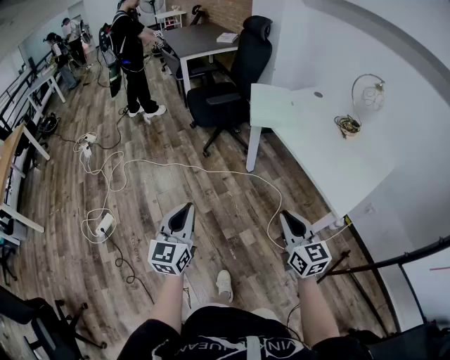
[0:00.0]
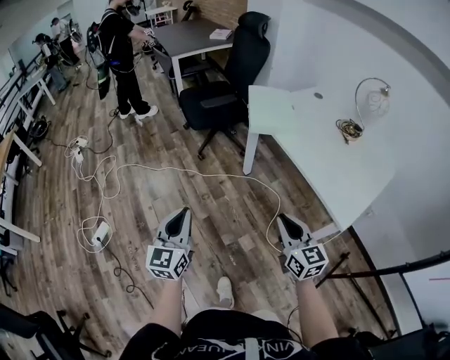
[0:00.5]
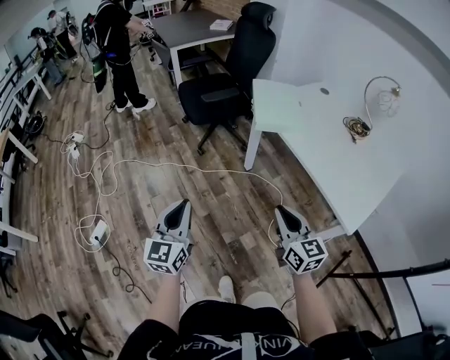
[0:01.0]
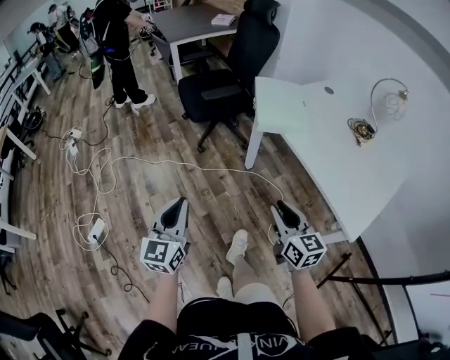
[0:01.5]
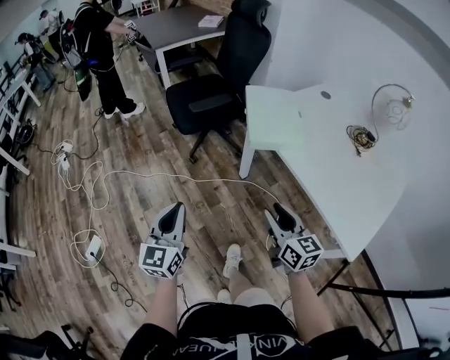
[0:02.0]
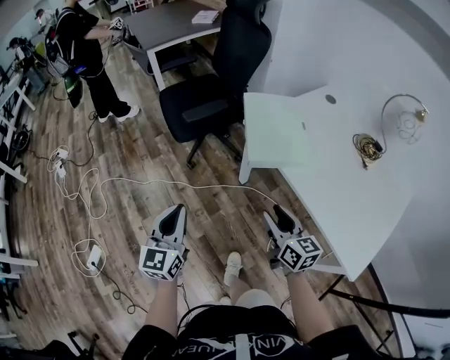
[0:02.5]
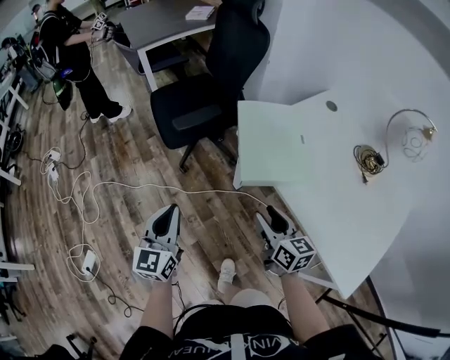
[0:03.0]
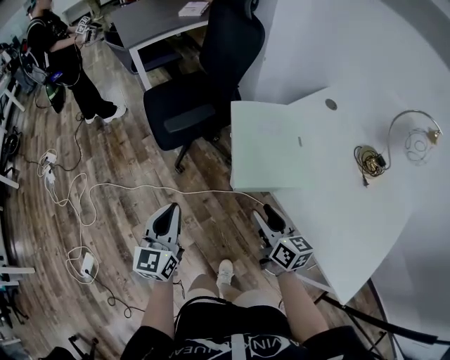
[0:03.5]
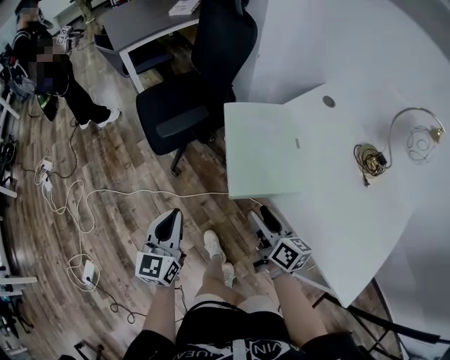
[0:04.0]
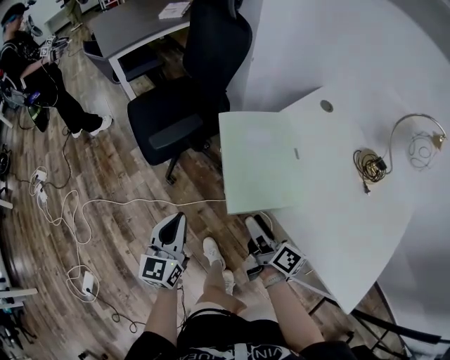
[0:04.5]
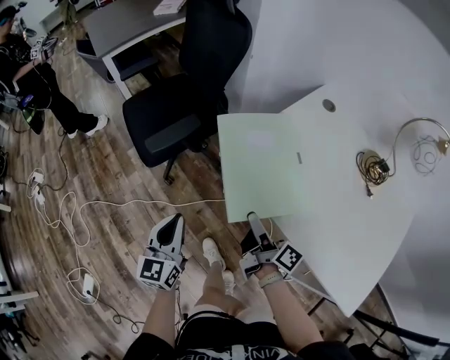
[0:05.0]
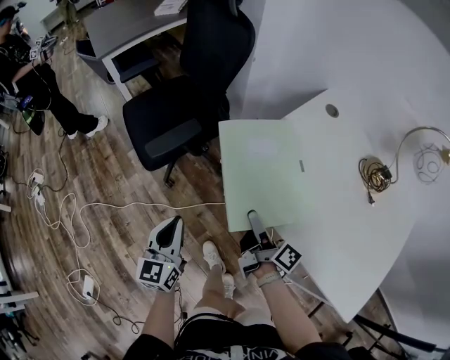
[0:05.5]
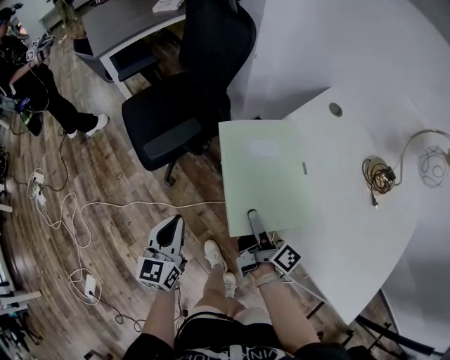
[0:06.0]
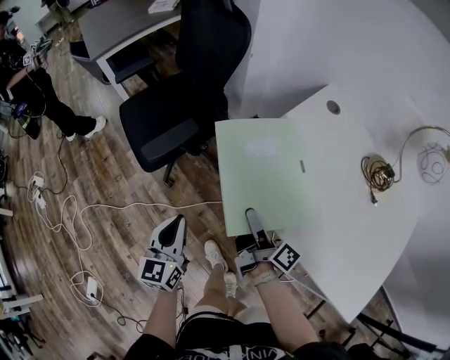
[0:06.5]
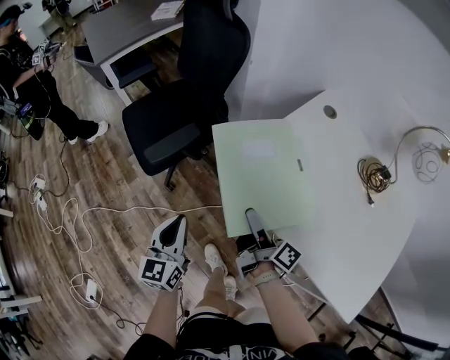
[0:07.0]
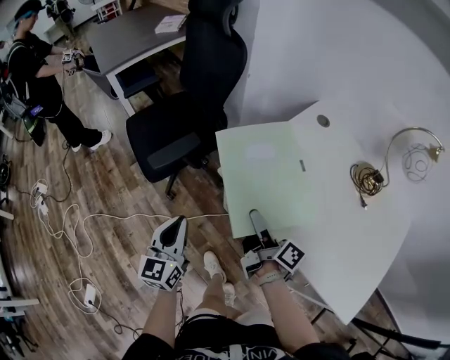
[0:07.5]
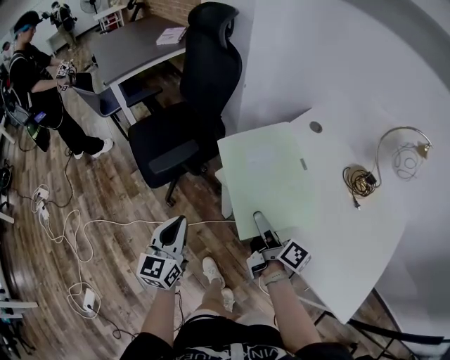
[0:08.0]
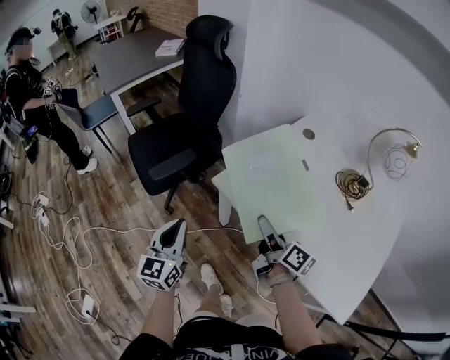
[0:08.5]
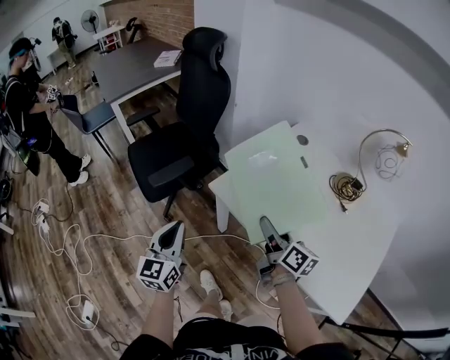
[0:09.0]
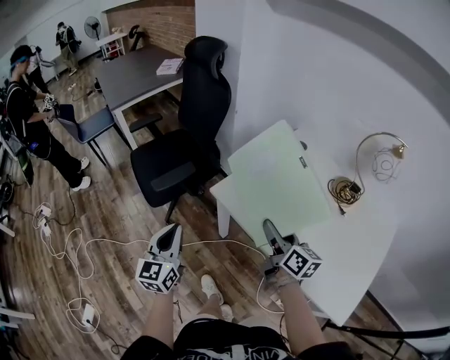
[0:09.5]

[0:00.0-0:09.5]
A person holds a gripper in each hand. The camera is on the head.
0:00.0 to 0:02.0: Both grippers move forward, approximately 25 cm. The right gripper opens its fingers.
0:02.0 to 0:04.0: The two grippers go about 25 cm forward. The right gripper swivels some 30 degrees.
0:04.0 to 0:05.5: The two grippers go some 10 cm forward. The right gripper changes its angle by approximately 30 degrees.
0:05.5 to 0:07.5: There are only small adjustments of the grippers.
0:07.5 to 0:09.5: The right gripper shifts some 15 cm upward and to the right, and changes its angle by approximately 30 degrees. The left gripper moves upward, approximately 5 cm.

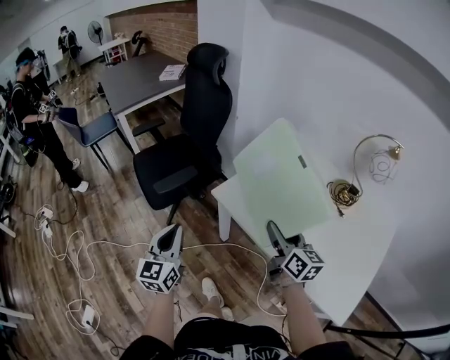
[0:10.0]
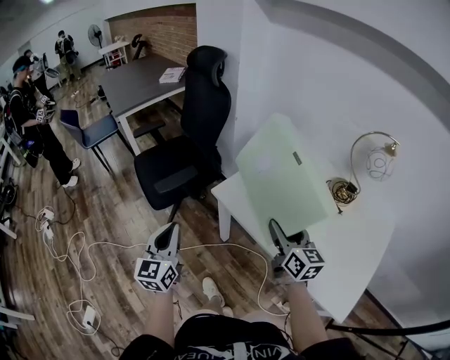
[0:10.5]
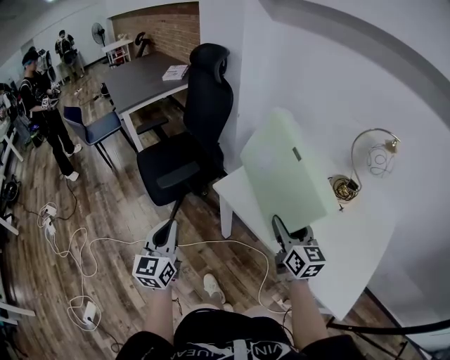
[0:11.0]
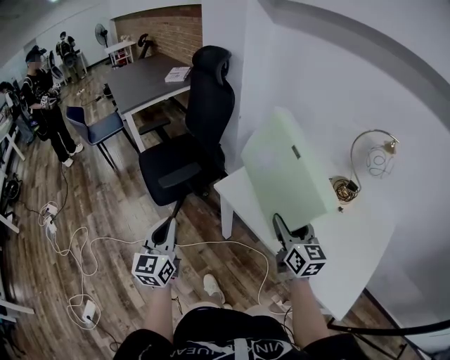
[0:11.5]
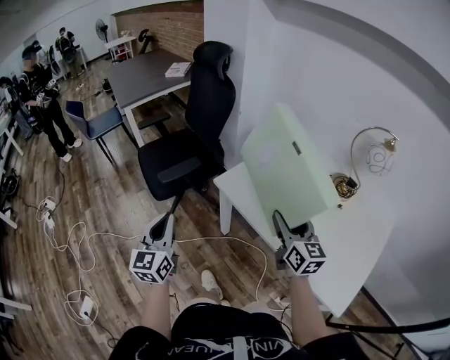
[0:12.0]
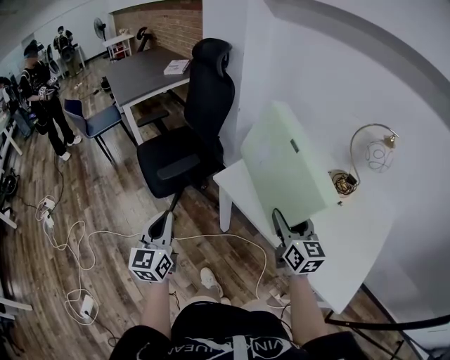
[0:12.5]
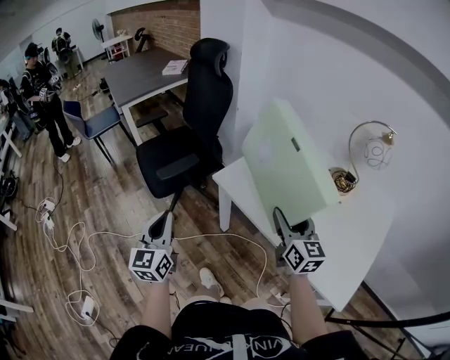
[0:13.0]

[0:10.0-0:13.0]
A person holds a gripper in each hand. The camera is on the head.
0:10.0 to 0:13.0: There are only small adjustments of the grippers.

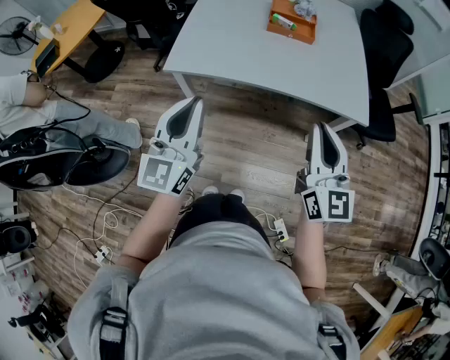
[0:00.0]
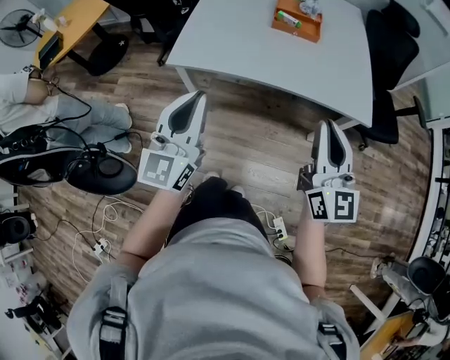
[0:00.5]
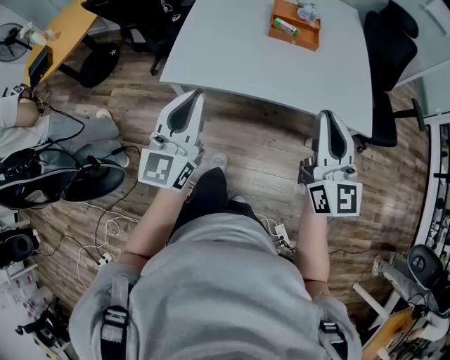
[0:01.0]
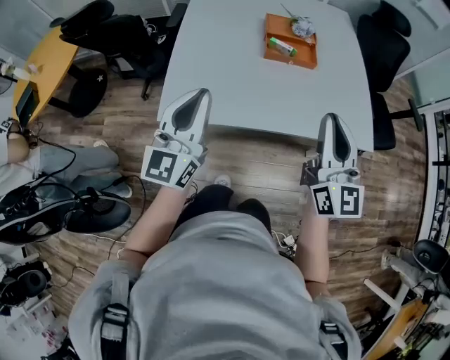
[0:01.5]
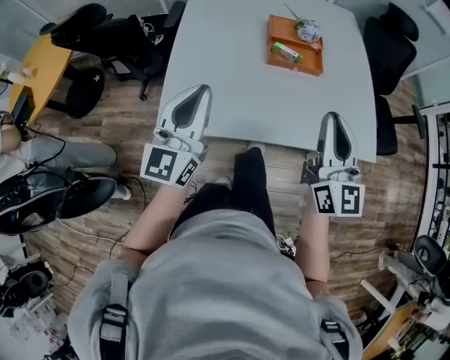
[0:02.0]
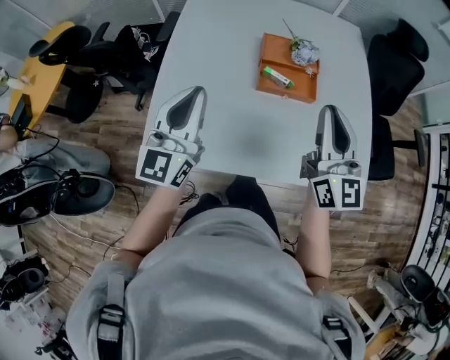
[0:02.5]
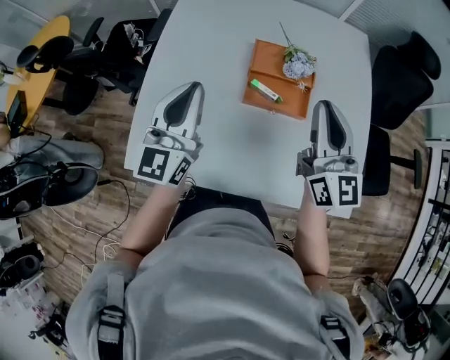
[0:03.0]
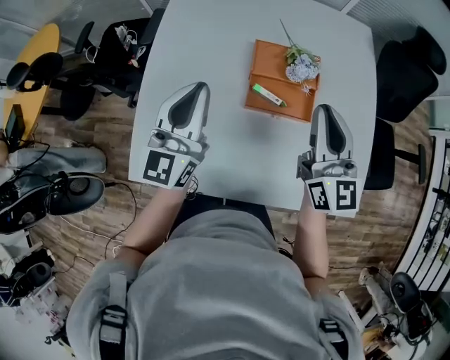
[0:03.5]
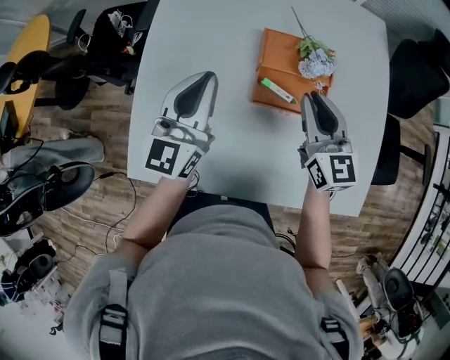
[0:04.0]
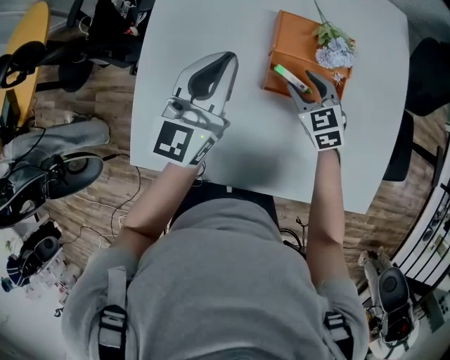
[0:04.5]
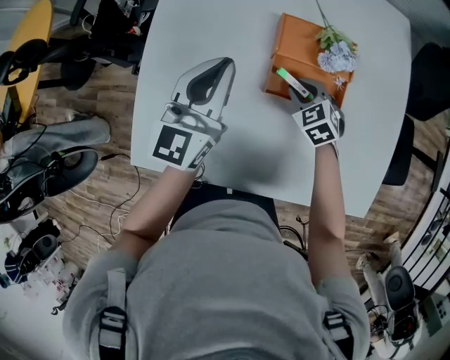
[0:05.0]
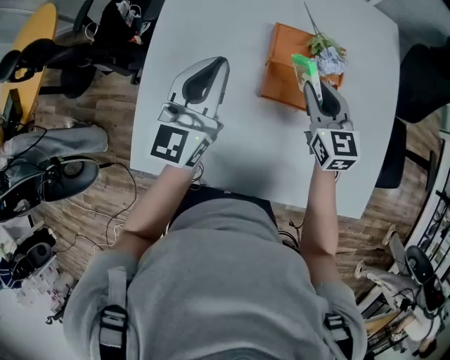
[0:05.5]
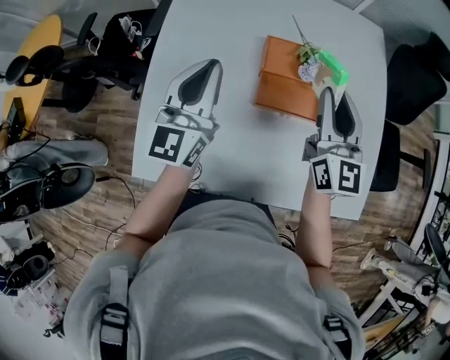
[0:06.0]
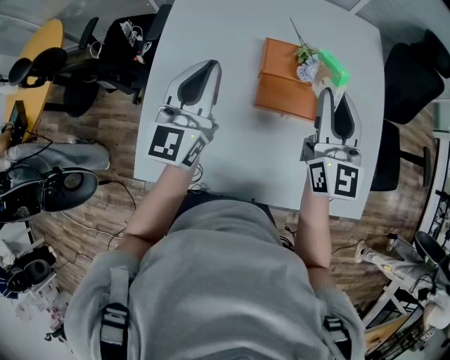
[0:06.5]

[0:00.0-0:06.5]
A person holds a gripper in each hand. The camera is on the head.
0:00.0 to 0:02.0: The grippers both shift forward by some 35 cm.
0:02.0 to 0:04.5: The pair of grippers is taken forward, about 40 cm. The right gripper travels downward by roughly 30 cm, tips its fingers downward by roughly 50 degrees, and opens.
0:04.5 to 0:06.5: The left gripper is displaced upward by about 10 cm, while the right gripper heads upward, covering approximately 25 cm, angles its fingers upward, by about 50 degrees, and closes its fingers.

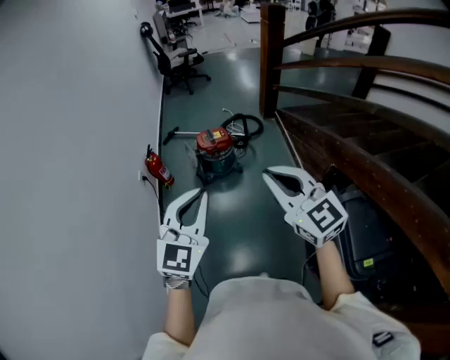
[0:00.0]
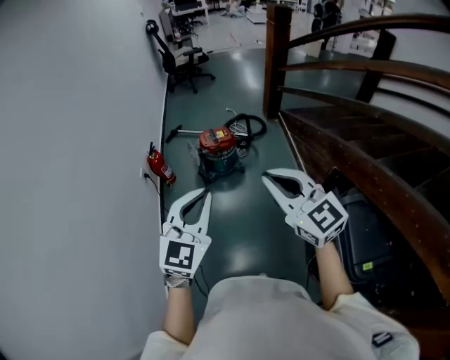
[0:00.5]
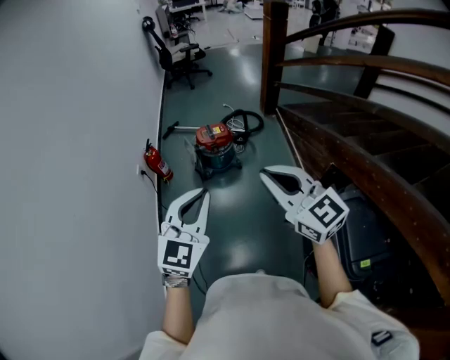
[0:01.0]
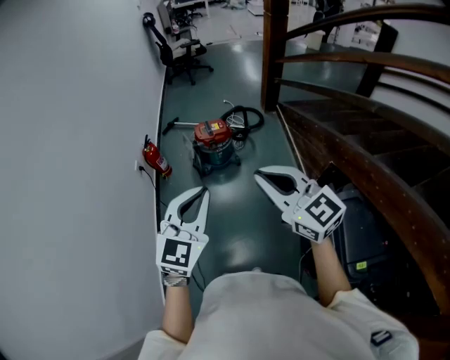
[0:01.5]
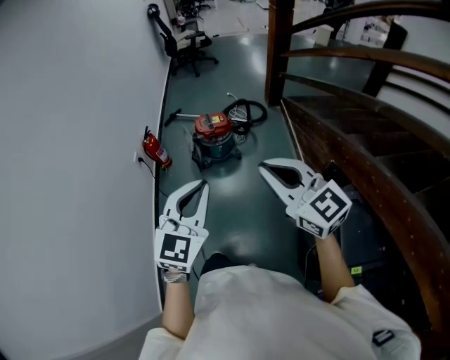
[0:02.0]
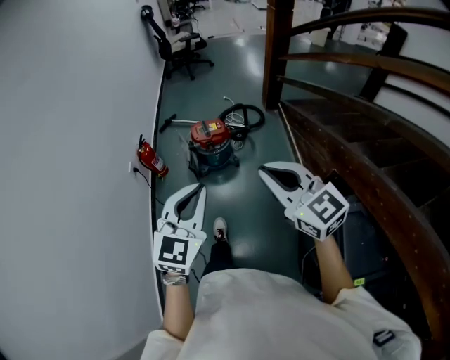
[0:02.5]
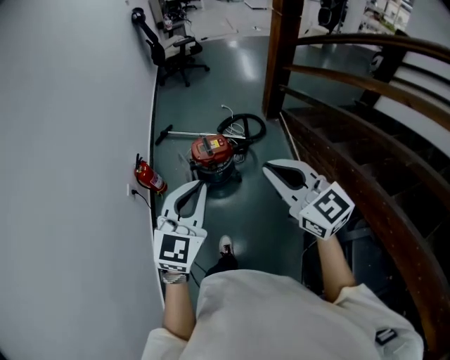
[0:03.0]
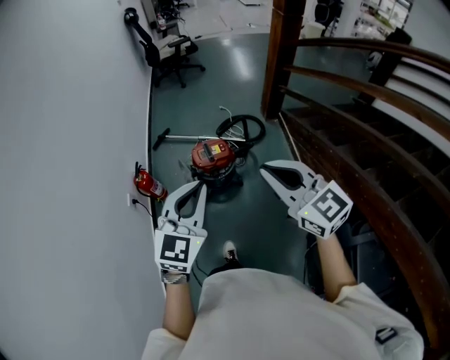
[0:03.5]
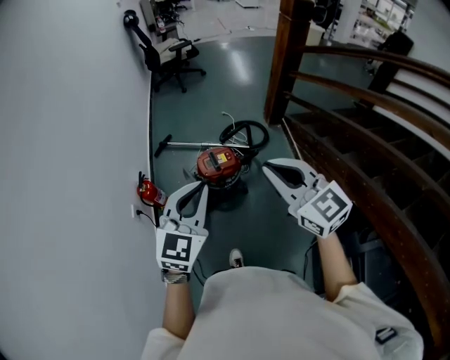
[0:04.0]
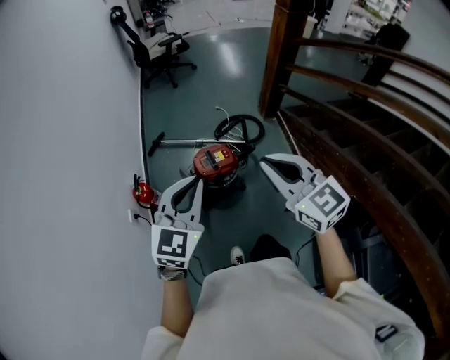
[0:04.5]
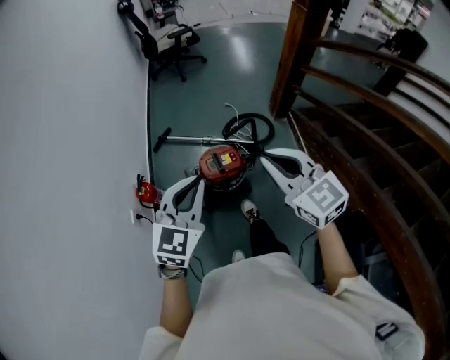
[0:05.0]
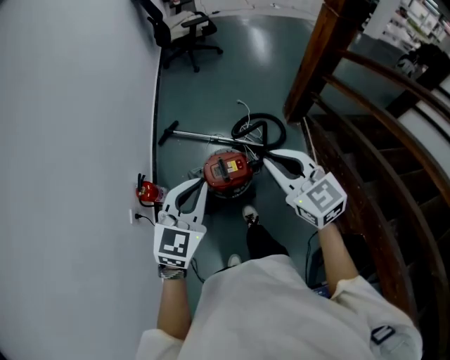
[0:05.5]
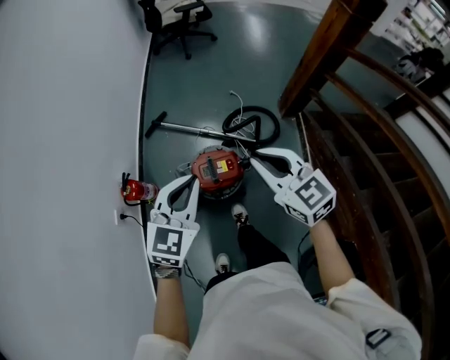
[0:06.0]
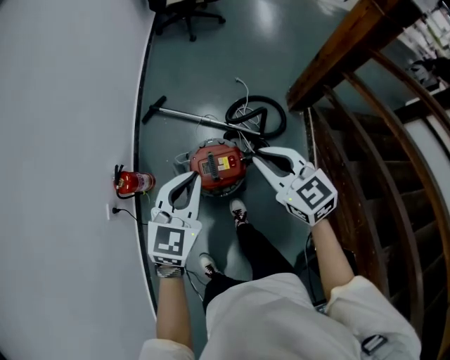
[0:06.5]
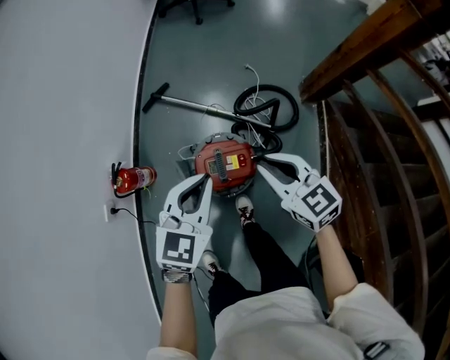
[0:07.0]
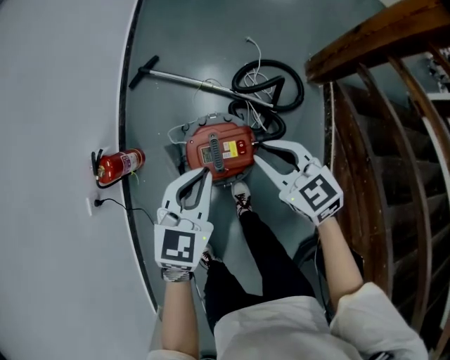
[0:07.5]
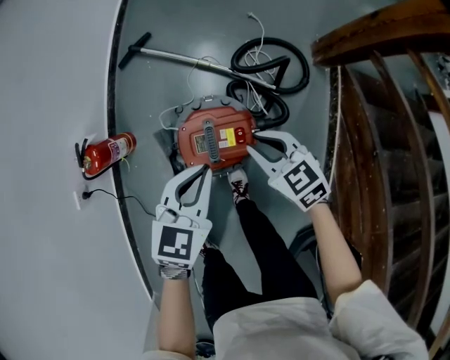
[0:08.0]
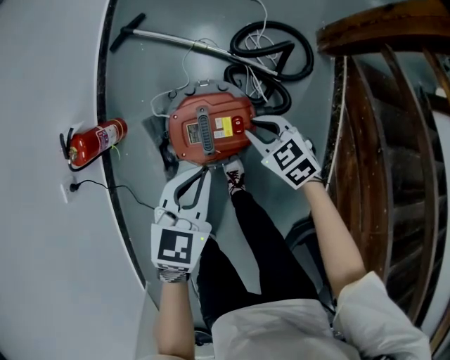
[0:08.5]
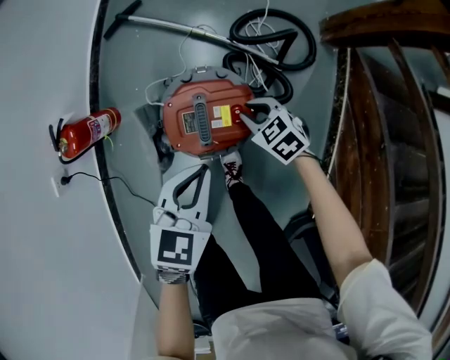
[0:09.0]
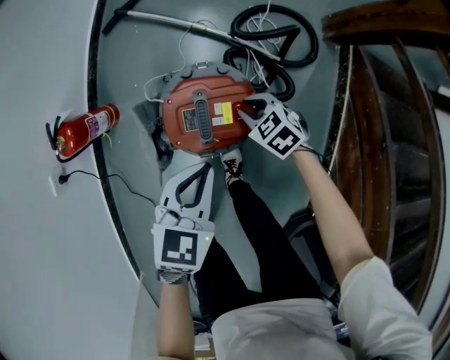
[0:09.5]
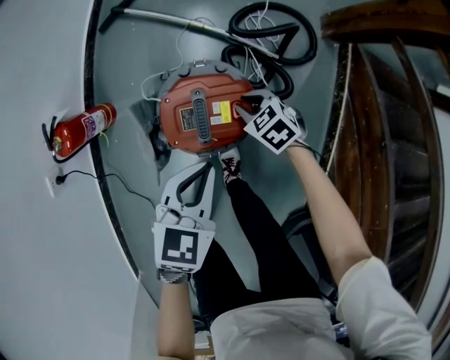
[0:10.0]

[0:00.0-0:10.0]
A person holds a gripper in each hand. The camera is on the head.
0:00.0 to 0:02.0: Both grippers move to the right, about 5 cm.
0:02.0 to 0:04.0: The two grippers go some 40 cm forward.
0:04.0 to 0:06.0: Both grippers move forward and downward, some 35 cm.
0:06.0 to 0:08.0: The grippers both shift downward by roughly 35 cm. The right gripper rotates some 30 degrees. The left gripper swivels roughly 20 degrees.
0:08.0 to 0:10.0: The left gripper moves downward, about 10 cm. Meanwhile the right gripper heads downward, covering about 20 cm, and turns by some 20 degrees.
